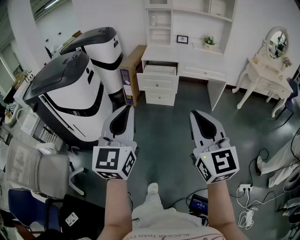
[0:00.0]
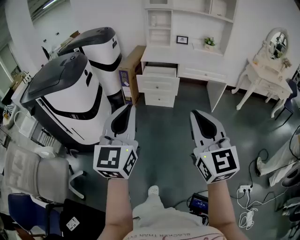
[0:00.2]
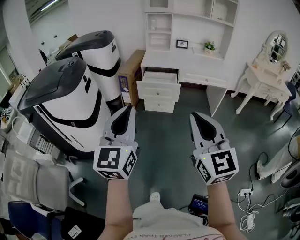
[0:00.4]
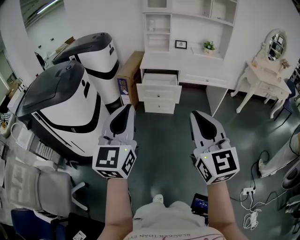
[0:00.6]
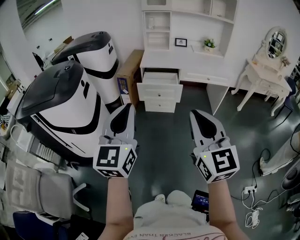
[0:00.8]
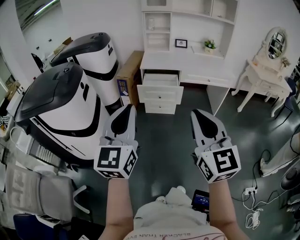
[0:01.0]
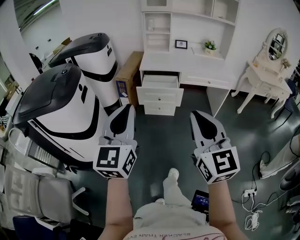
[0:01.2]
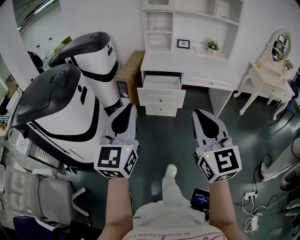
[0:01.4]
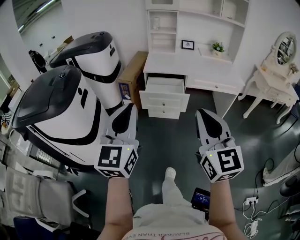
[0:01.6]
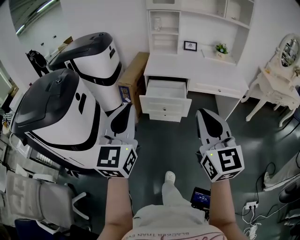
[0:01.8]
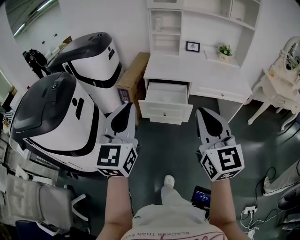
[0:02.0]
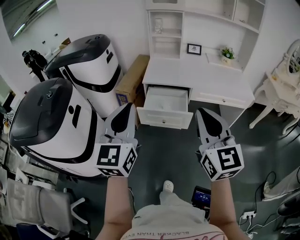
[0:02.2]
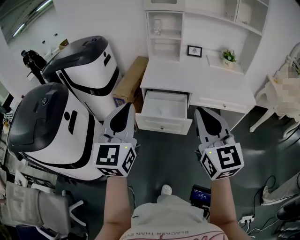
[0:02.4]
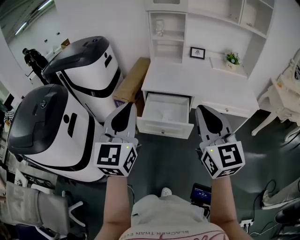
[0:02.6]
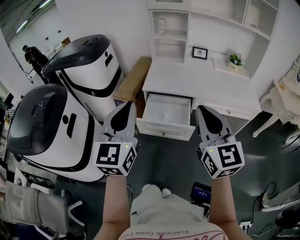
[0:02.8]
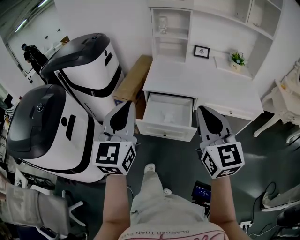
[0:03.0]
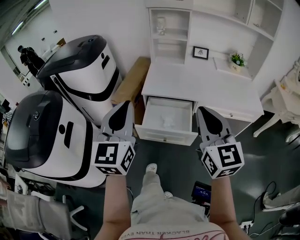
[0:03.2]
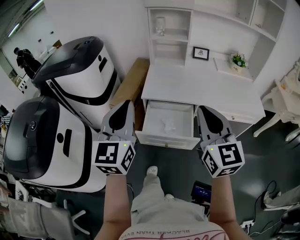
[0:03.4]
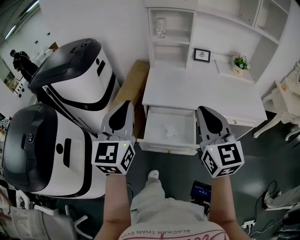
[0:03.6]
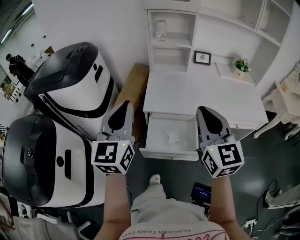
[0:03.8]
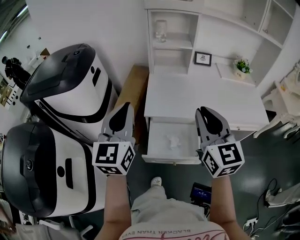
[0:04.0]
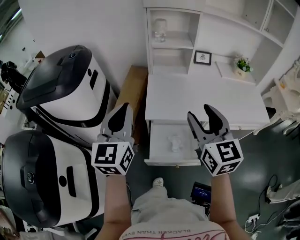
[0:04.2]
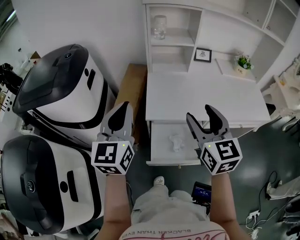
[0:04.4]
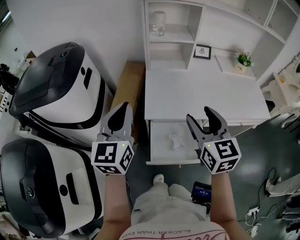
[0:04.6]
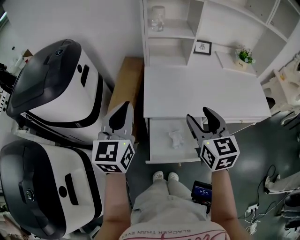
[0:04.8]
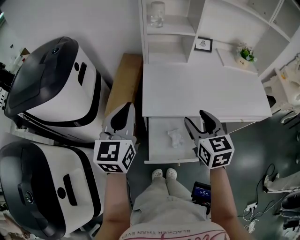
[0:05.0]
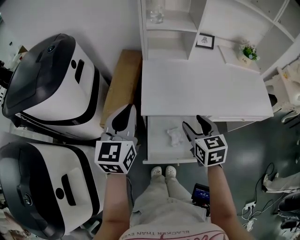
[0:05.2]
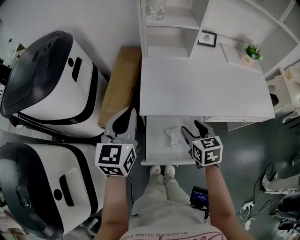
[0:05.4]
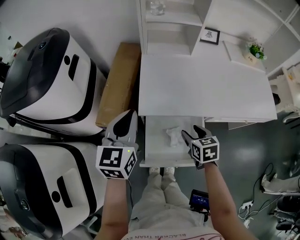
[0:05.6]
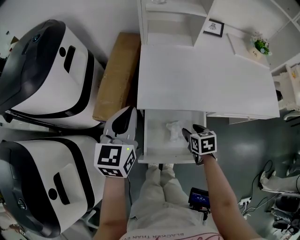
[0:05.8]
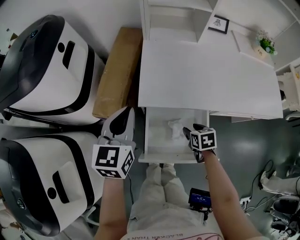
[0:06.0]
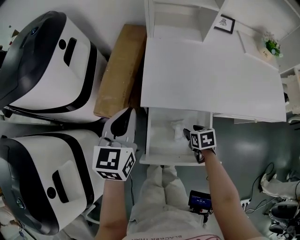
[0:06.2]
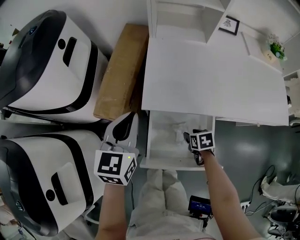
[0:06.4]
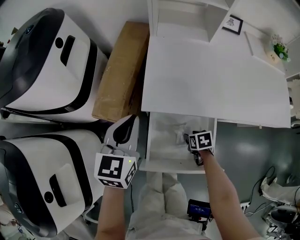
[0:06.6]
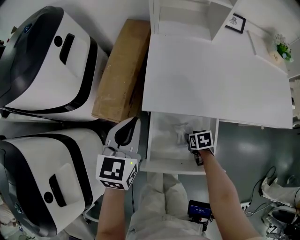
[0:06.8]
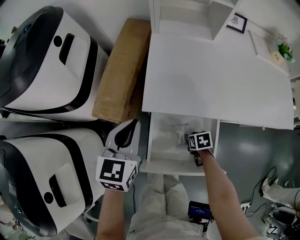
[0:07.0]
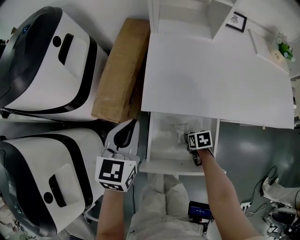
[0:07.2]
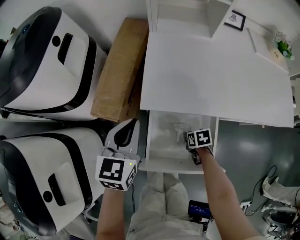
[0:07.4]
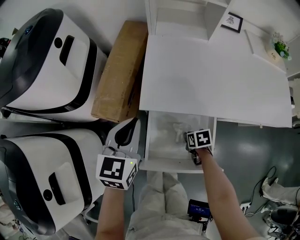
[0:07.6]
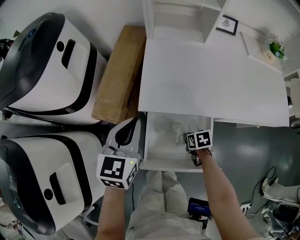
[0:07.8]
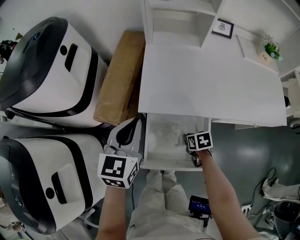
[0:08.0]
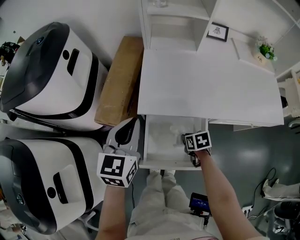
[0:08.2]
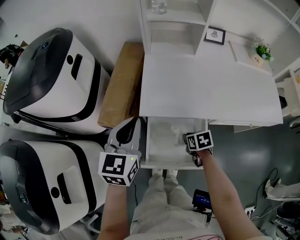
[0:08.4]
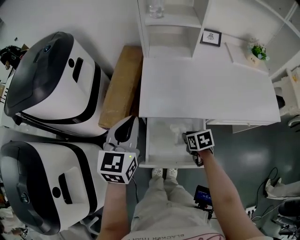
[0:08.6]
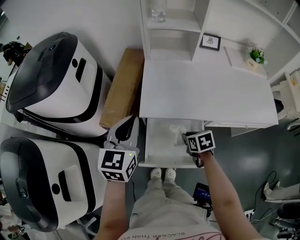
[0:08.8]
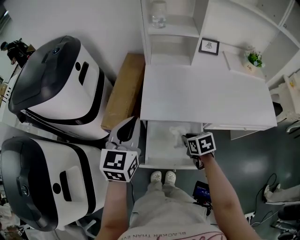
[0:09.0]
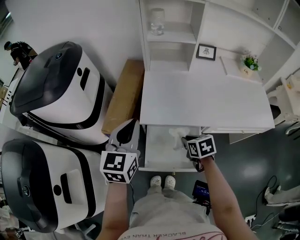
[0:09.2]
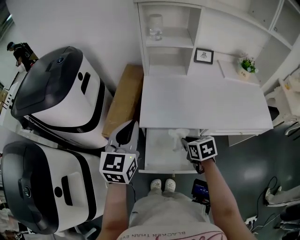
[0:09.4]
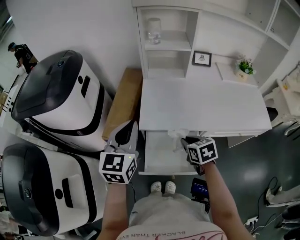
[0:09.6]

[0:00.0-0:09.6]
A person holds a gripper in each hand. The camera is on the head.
0:00.0 to 0:01.6: The two grippers go some 25 cm forward.
0:01.6 to 0:03.2: Both grippers travel together forward, approximately 35 cm.
0:03.2 to 0:04.8: The left gripper heads forward, covering about 30 cm; the right gripper shifts about 25 cm forward and downward, turns by roughly 20 degrees, and opens its fingers.
0:04.8 to 0:06.4: The right gripper moves downward, roughly 40 cm, and tips its fingers downward by roughly 50 degrees, while the left gripper heads downward, covering approximately 15 cm.
0:06.4 to 0:08.0: The right gripper closes its fingers.
0:08.0 to 0:09.6: The right gripper goes approximately 20 cm upward, and changes its angle by about 30 degrees; the left gripper shifts about 10 cm upward.

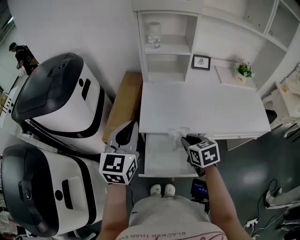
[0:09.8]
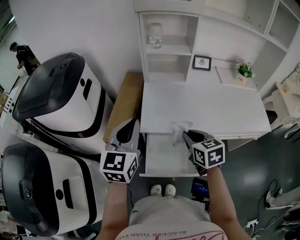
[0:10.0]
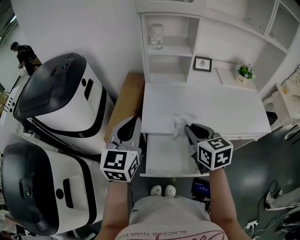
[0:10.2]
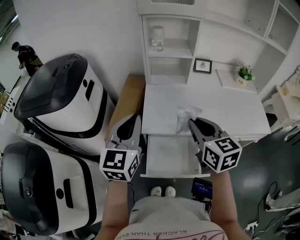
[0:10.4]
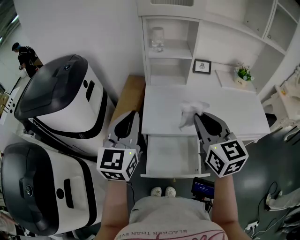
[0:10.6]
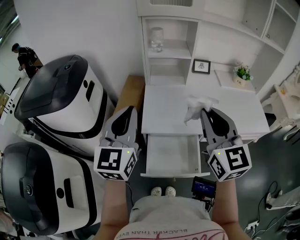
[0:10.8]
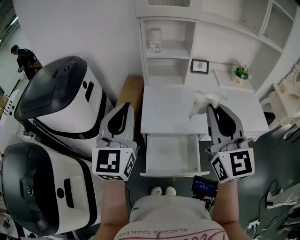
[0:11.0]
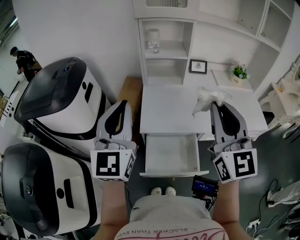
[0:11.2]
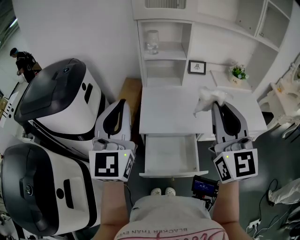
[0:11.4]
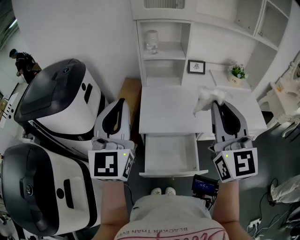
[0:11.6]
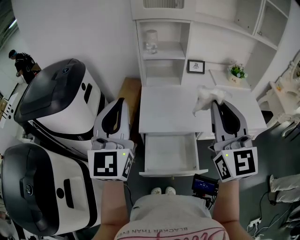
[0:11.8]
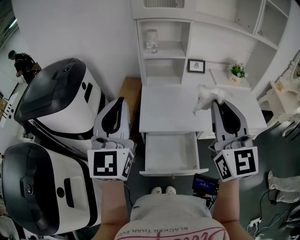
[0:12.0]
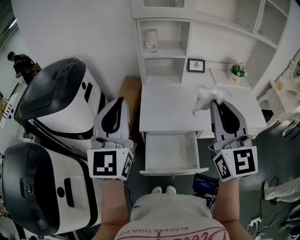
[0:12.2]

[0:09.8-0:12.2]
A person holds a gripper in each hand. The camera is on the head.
0:09.8 to 0:11.0: The left gripper moves upward, about 10 cm. Meanwhile the right gripper heads upward, covering approximately 30 cm, and points its fingers approximately 50 degrees further upward.
0:11.0 to 0:12.2: There are only small adjustments of the grippers.

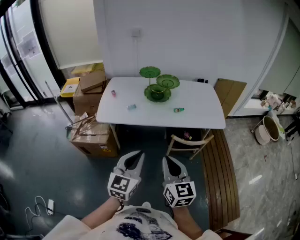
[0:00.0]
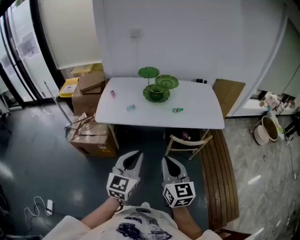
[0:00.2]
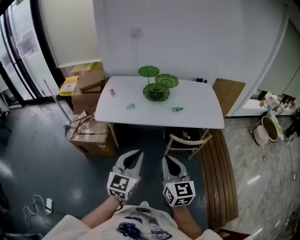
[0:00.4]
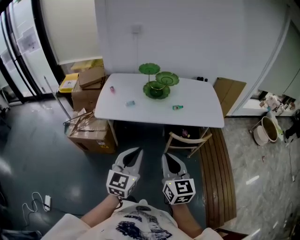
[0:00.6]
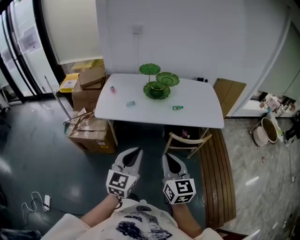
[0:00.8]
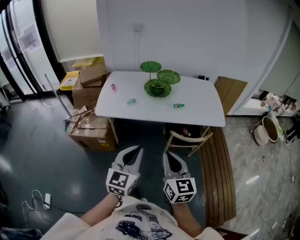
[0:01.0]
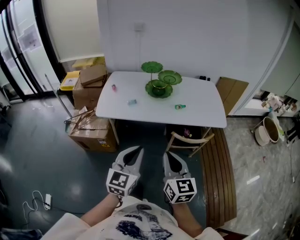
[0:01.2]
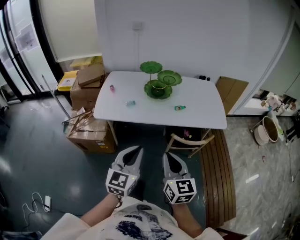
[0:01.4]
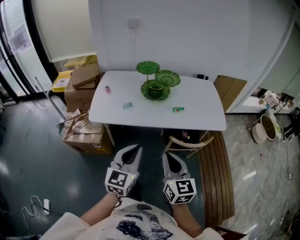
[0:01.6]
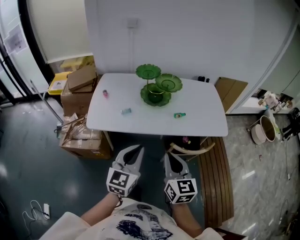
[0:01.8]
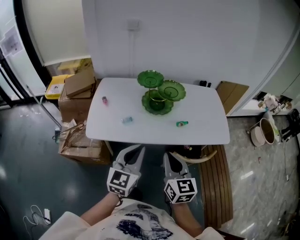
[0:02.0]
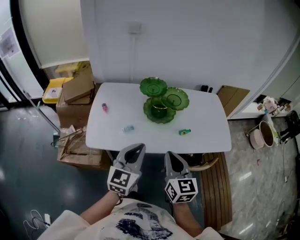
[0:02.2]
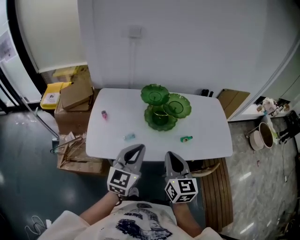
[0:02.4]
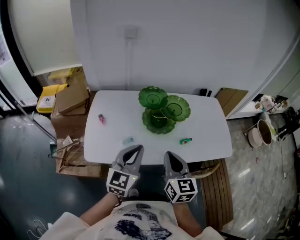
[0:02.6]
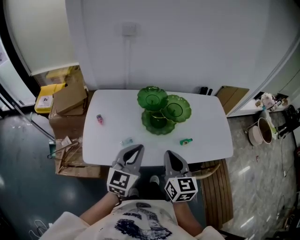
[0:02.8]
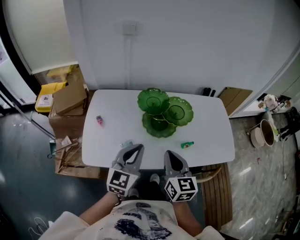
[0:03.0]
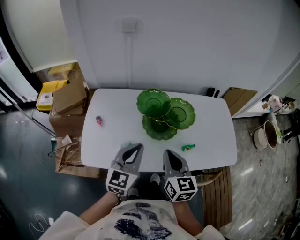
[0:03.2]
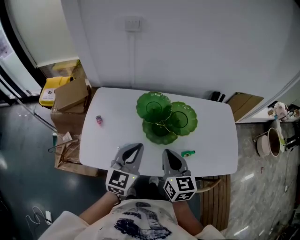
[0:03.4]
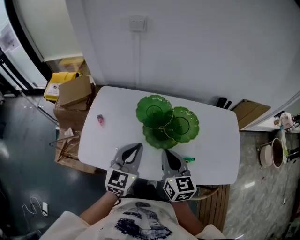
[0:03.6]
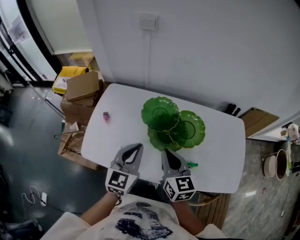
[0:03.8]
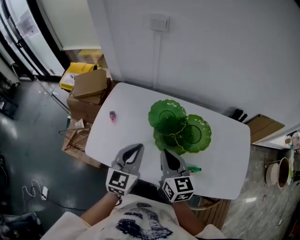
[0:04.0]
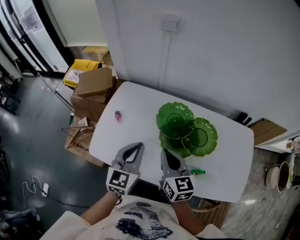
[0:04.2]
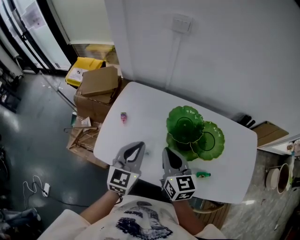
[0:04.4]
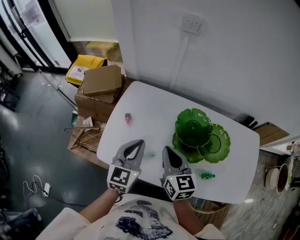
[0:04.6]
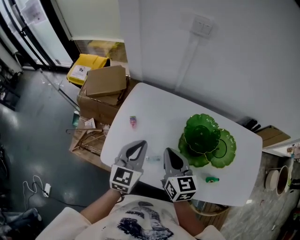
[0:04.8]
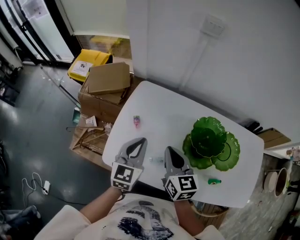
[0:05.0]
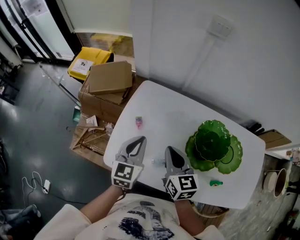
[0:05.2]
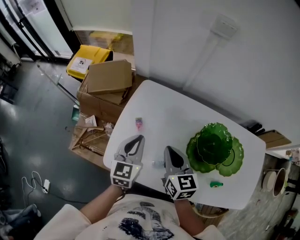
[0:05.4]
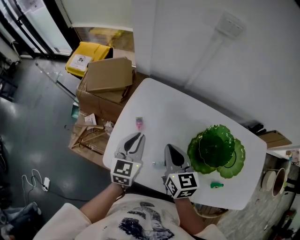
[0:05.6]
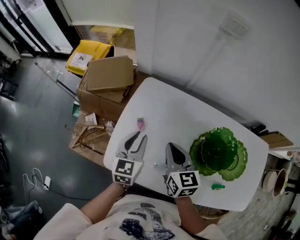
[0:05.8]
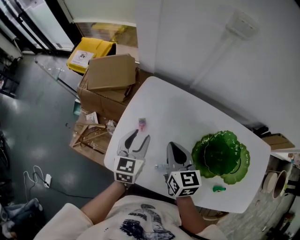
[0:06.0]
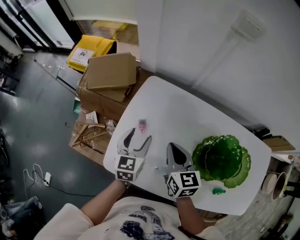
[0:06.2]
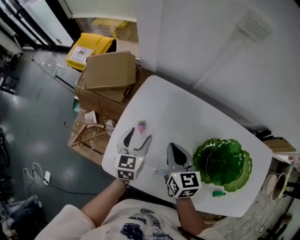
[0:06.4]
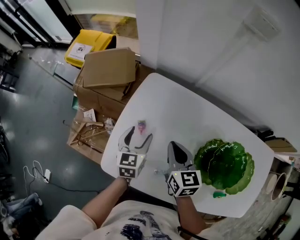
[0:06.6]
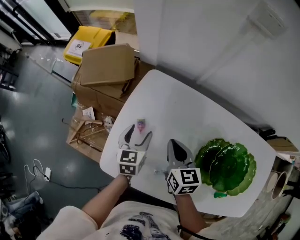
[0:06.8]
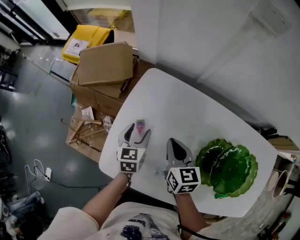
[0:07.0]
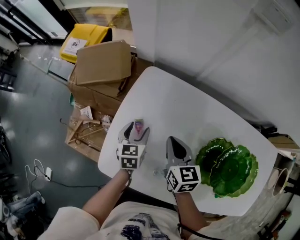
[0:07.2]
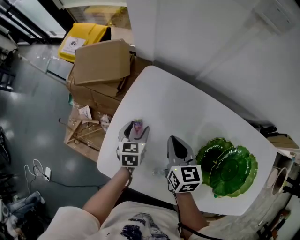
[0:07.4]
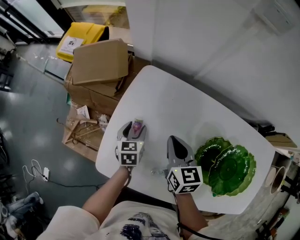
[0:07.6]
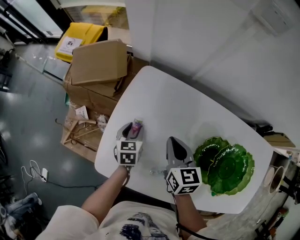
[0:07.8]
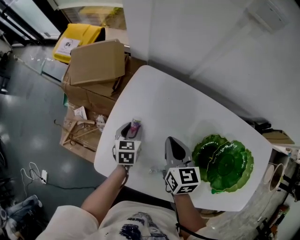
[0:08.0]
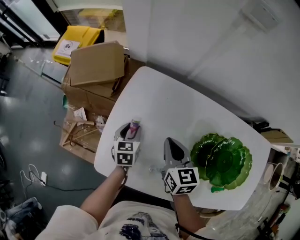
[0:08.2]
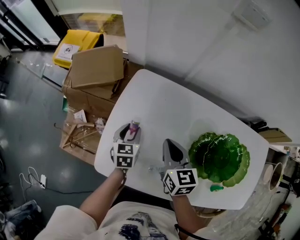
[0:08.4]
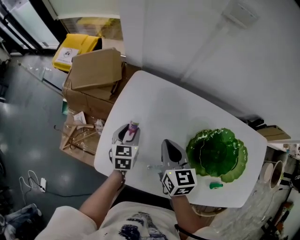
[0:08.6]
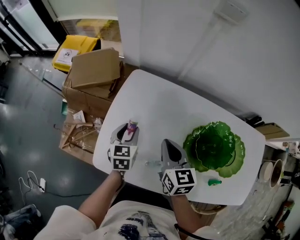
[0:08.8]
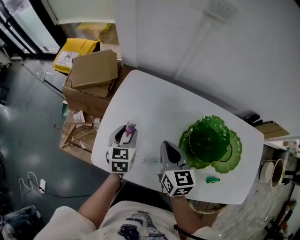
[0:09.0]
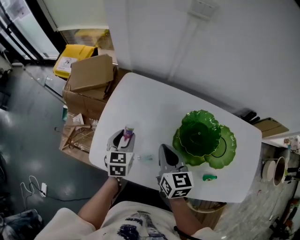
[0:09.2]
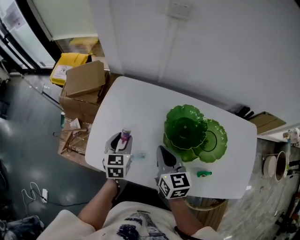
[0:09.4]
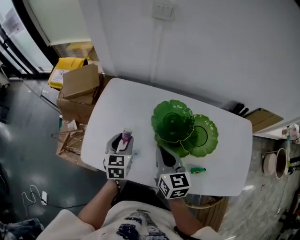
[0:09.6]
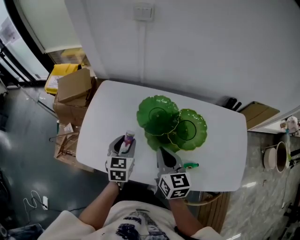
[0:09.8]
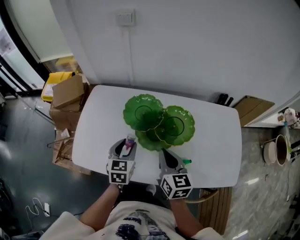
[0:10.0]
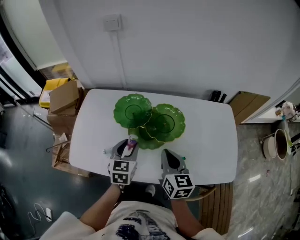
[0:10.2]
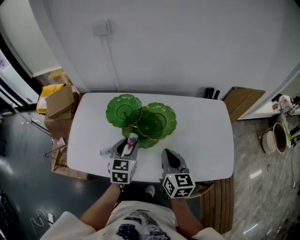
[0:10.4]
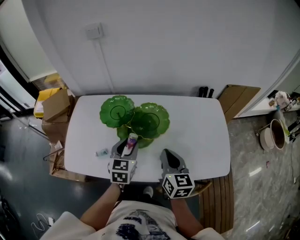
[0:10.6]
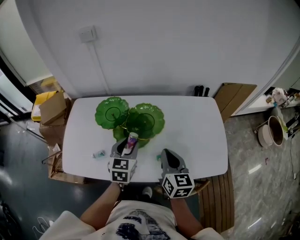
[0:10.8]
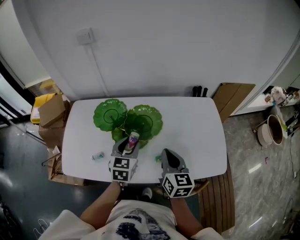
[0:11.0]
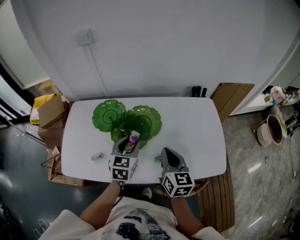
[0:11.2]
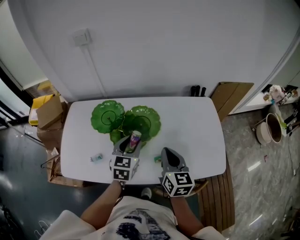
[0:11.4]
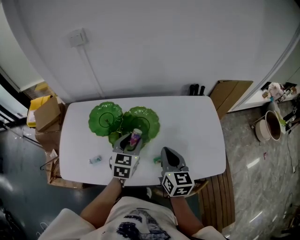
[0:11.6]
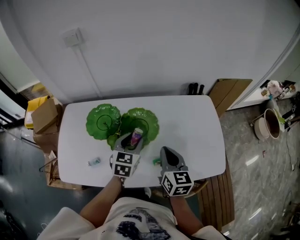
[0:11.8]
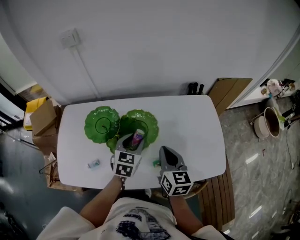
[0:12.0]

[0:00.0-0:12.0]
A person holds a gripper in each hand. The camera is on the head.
0:00.0 to 0:01.6: The two grippers go approximately 10 cm forward.
0:01.6 to 0:03.0: Both grippers move forward, some 35 cm.
0:03.0 to 0:04.4: The right gripper moves roughly 15 cm, and swivels roughly 30 degrees, while the left gripper shifts by about 15 cm, and rotates approximately 20 degrees.
0:04.4 to 0:06.0: Both grippers travel together forward, to the left and downward, roughly 20 cm. The left gripper opens its fingers.
0:06.0 to 0:07.6: The right gripper moves downward and forward, approximately 10 cm, while the left gripper shifts roughly 15 cm downward, and rotates some 20 degrees.
0:07.6 to 0:09.0: The right gripper goes some 10 cm backward and upward. Meanwhile the left gripper heads upward and backward, covering roughly 15 cm.
0:09.0 to 0:10.4: The grippers both shift to the right and backward by some 35 cm. The right gripper turns by about 20 degrees, while the left gripper turns by about 20 degrees.
0:10.4 to 0:12.0: The left gripper heads to the right and forward, covering about 15 cm. Meanwhile the right gripper moves to the right and forward, some 10 cm.
